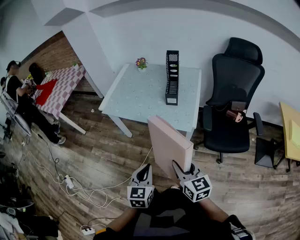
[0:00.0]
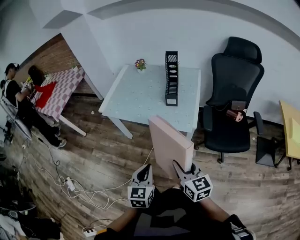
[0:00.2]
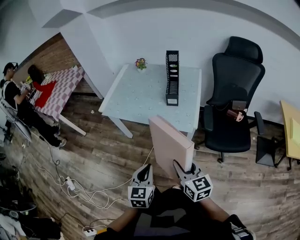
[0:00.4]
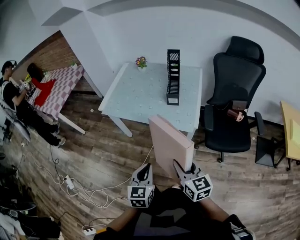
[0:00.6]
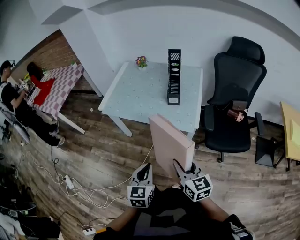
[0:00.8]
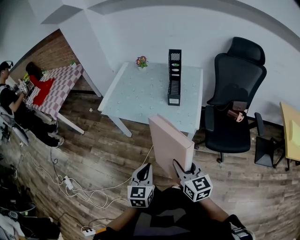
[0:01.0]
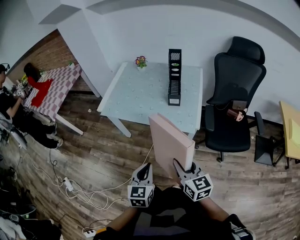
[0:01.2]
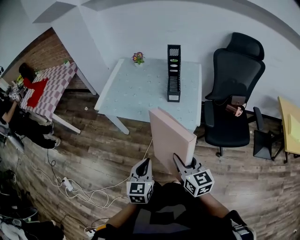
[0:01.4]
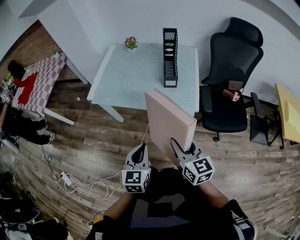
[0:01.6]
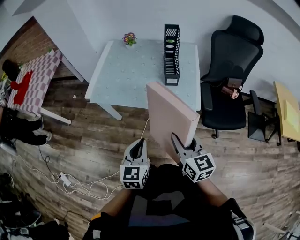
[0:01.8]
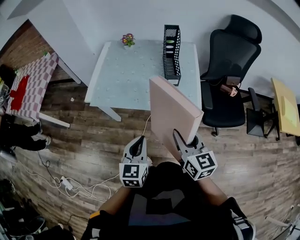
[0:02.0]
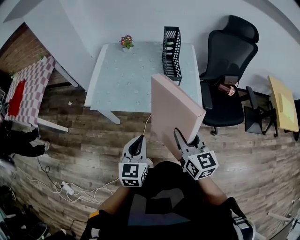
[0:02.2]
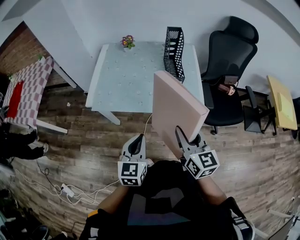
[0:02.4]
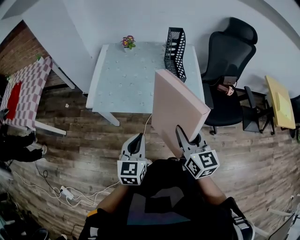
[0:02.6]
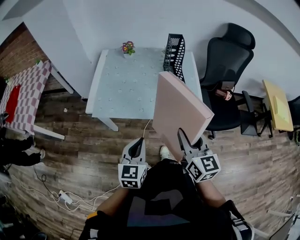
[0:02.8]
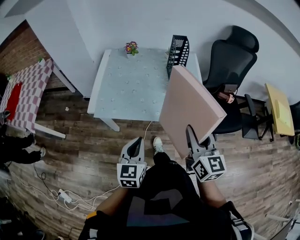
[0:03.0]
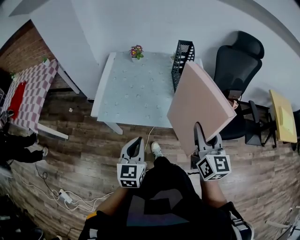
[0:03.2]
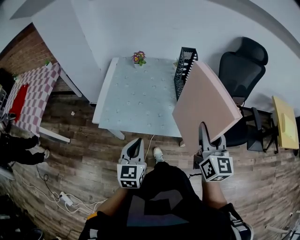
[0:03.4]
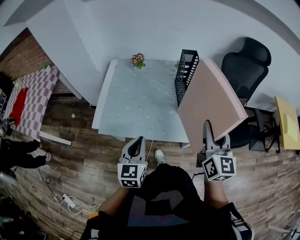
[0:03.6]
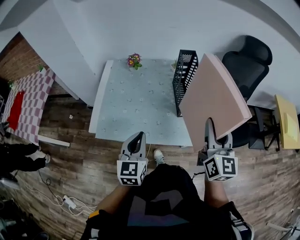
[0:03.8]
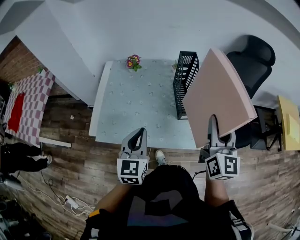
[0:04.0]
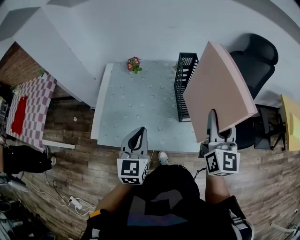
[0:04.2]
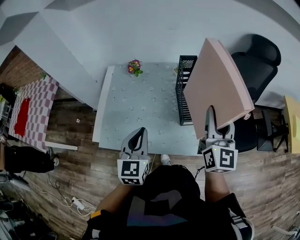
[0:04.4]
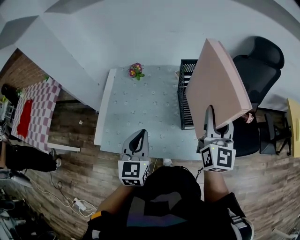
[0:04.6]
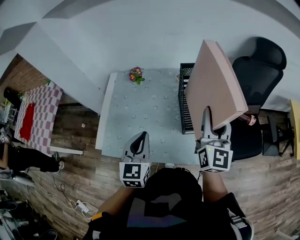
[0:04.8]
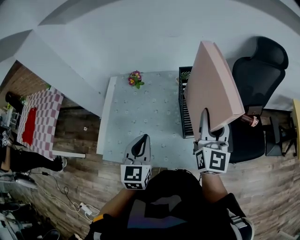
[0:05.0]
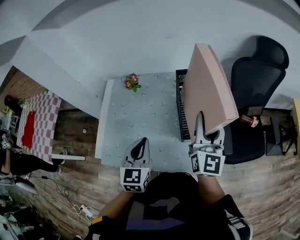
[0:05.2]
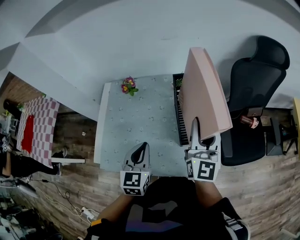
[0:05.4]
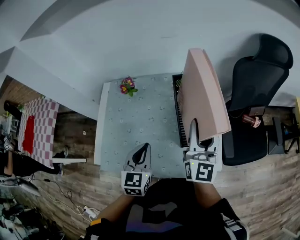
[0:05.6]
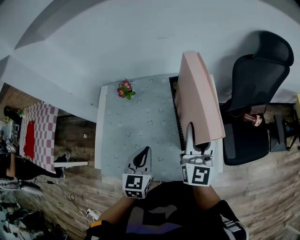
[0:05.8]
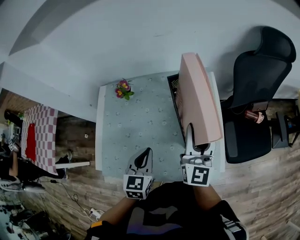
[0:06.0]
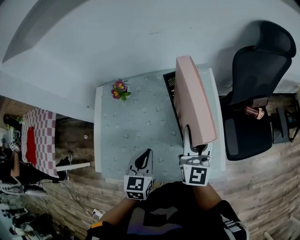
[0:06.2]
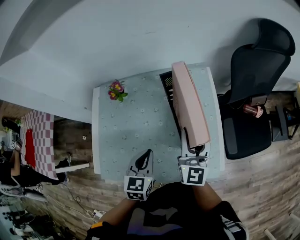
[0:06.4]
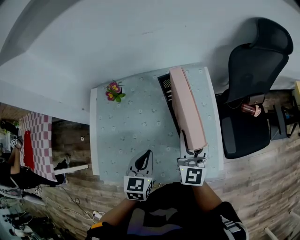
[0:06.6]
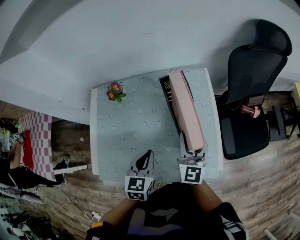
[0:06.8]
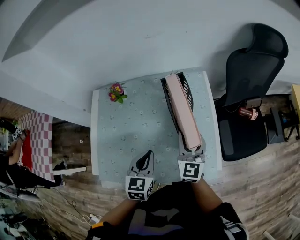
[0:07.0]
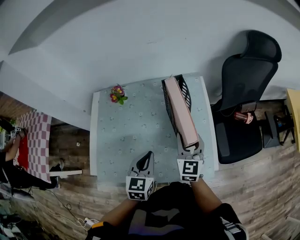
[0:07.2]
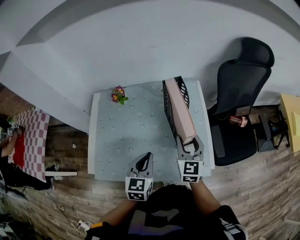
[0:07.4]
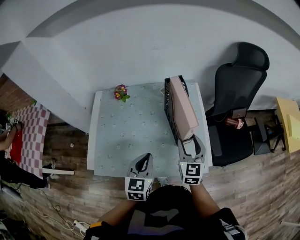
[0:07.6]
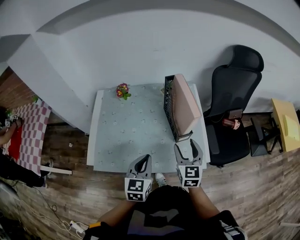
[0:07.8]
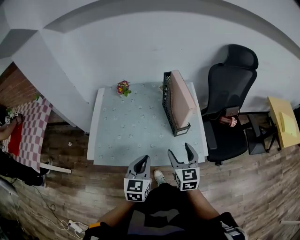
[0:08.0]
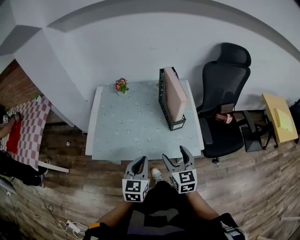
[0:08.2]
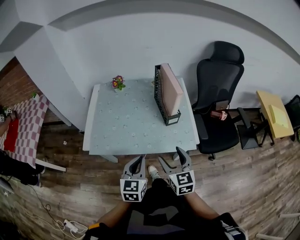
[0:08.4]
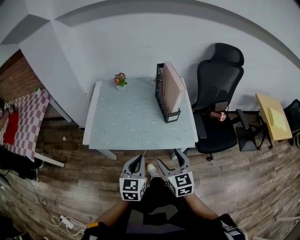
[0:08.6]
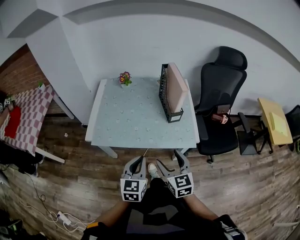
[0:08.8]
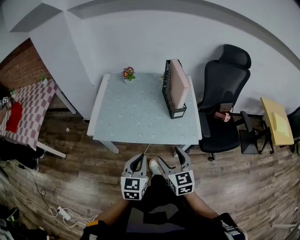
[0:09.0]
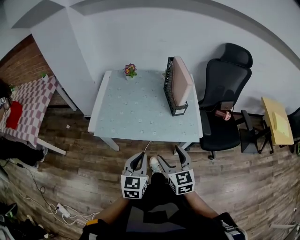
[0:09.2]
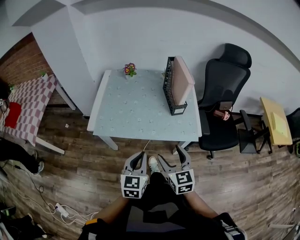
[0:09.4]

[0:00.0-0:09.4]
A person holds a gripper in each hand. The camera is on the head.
0.0 to 1.6 s: The grippers both shift forward by approximately 10 cm.
1.6 to 3.2 s: The right gripper is displaced forward and upward by roughly 15 cm, and turns by roughly 30 degrees. Meanwhile the left gripper heads to the left and forward, covering some 20 cm.
3.2 to 4.8 s: Both grippers travel together forward, about 25 cm.
4.8 to 6.2 s: Both grippers travel together downward and forward, some 15 cm.
6.2 to 7.8 s: Both grippers travel together backward, some 15 cm. The right gripper turns by about 30 degrees, and opens.
7.8 to 9.4 s: Both grippers move backward, some 25 cm.

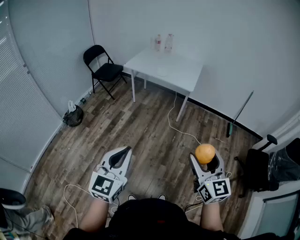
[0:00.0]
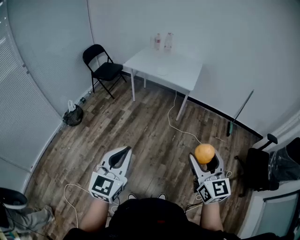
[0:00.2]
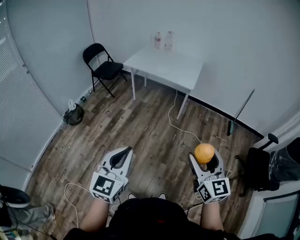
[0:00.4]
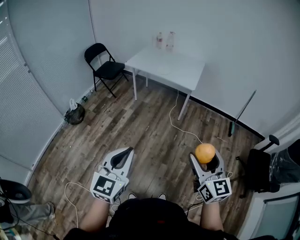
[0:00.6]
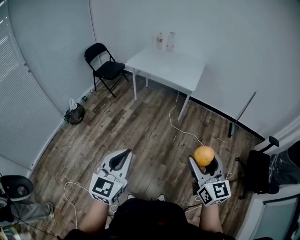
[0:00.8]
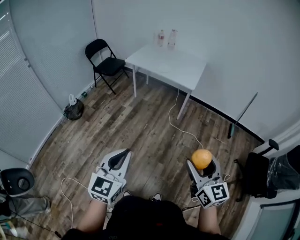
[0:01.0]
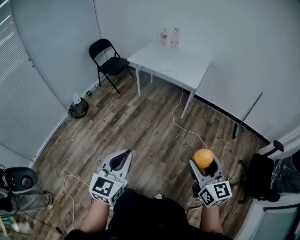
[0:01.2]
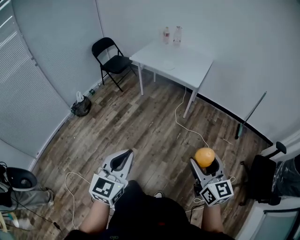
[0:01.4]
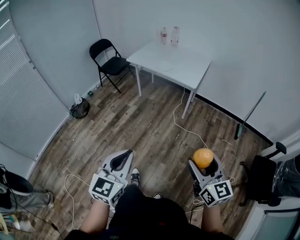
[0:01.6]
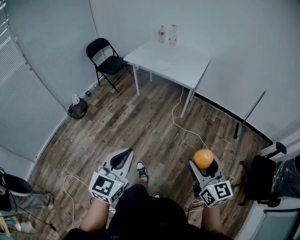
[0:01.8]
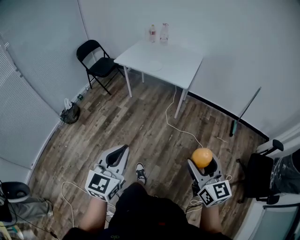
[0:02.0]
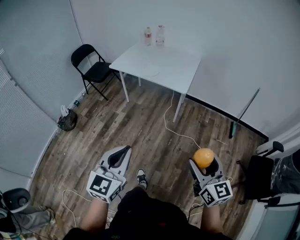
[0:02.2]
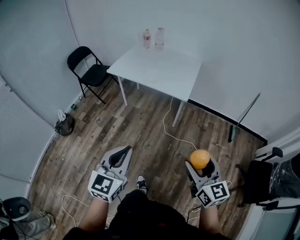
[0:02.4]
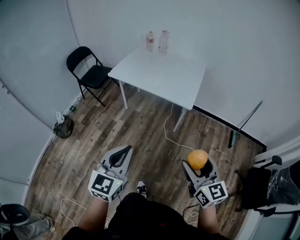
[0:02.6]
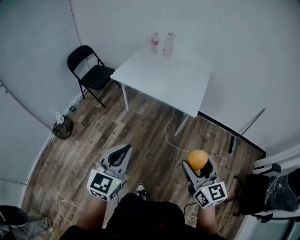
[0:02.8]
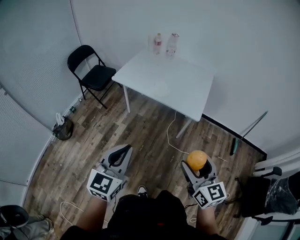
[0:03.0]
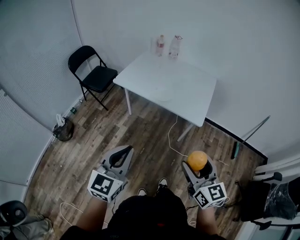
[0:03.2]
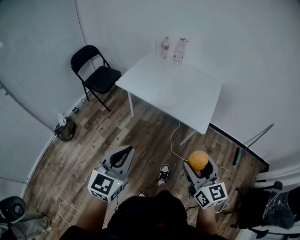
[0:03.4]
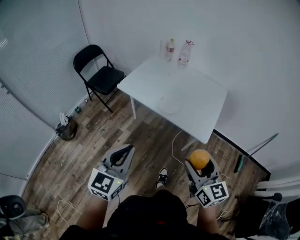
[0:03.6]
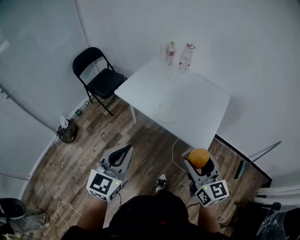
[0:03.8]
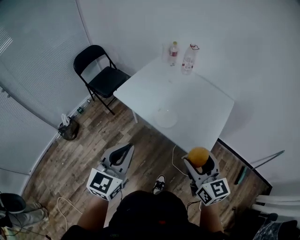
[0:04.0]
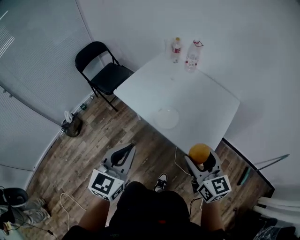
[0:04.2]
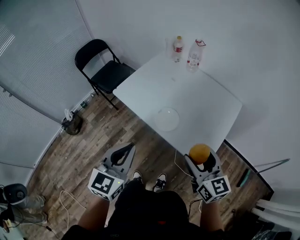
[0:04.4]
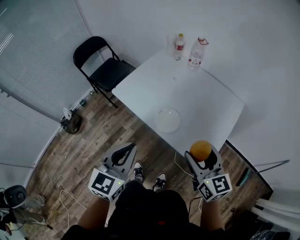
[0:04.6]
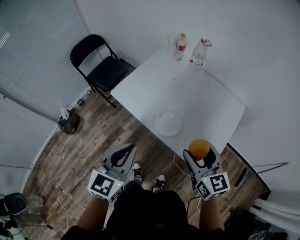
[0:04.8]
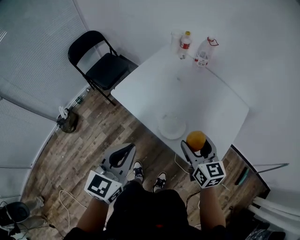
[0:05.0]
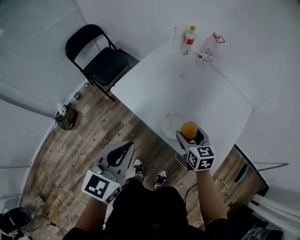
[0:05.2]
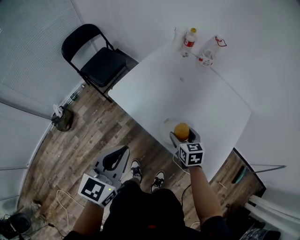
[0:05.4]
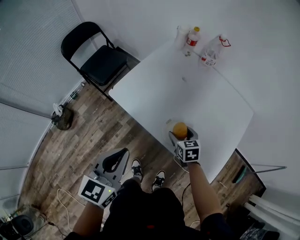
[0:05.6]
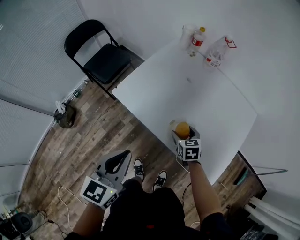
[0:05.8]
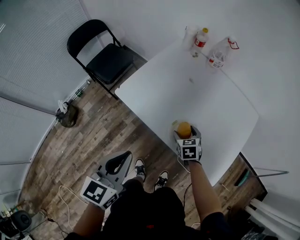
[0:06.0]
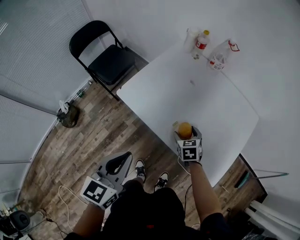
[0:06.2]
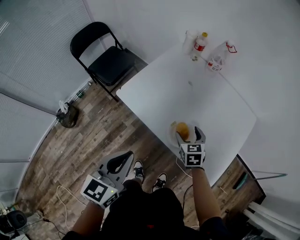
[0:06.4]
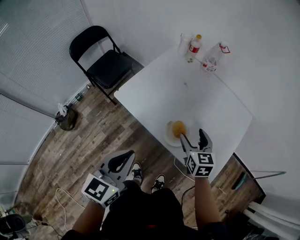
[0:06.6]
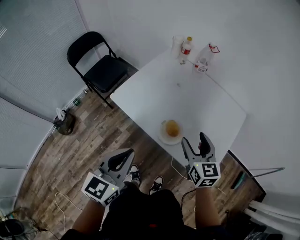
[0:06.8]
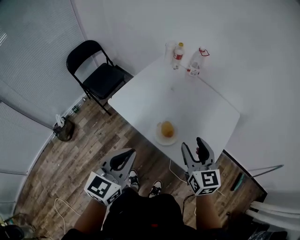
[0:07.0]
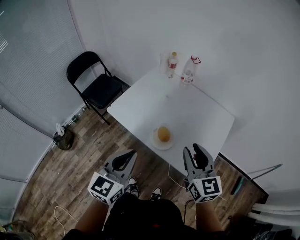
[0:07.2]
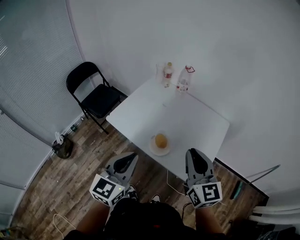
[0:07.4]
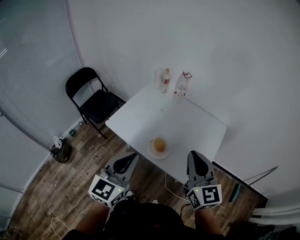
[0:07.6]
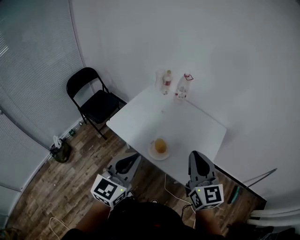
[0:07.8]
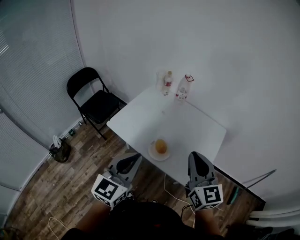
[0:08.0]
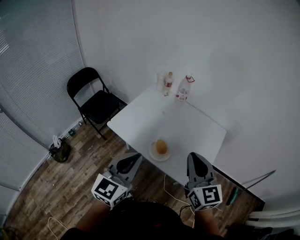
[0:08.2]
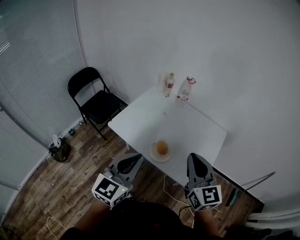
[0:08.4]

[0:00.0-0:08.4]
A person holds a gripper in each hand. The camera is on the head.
0.0 to 1.4 s: The right gripper travels to the right and downward by some 10 cm; the left gripper travels to the right by approximately 10 cm.
1.4 to 2.8 s: Both grippers travel together forward, some 40 cm.
2.8 to 4.2 s: Both grippers travel together forward, roughly 40 cm.
4.2 to 5.6 s: The right gripper travels downward and forward by some 40 cm, and tips its fingers downward by some 40 degrees; the left gripper moves forward, to the left and downward, roughly 20 cm.
5.6 to 7.0 s: The left gripper heads to the right, upward and backward, covering roughly 10 cm. Meanwhile the right gripper is displaced upward and backward by about 30 cm, and tips its fingers upward by approximately 30 degrees.
7.0 to 8.4 s: The left gripper shifts about 10 cm upward; the right gripper moves upward and backward, roughly 15 cm, and closes up.

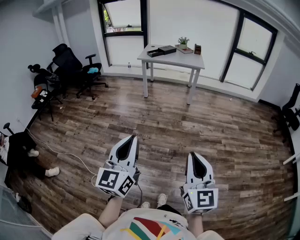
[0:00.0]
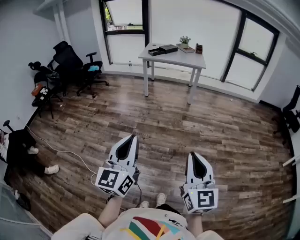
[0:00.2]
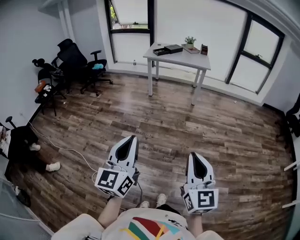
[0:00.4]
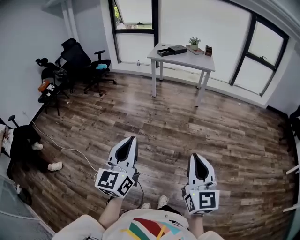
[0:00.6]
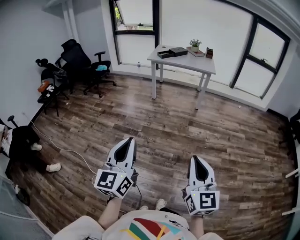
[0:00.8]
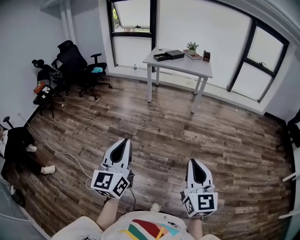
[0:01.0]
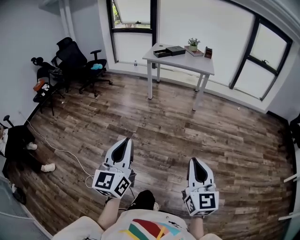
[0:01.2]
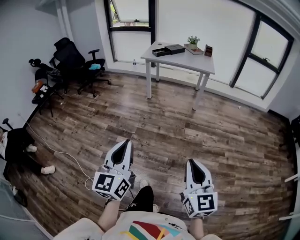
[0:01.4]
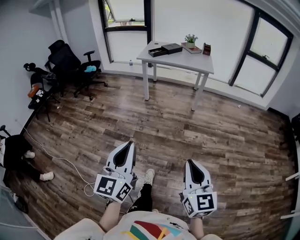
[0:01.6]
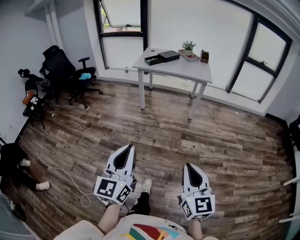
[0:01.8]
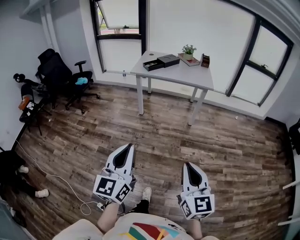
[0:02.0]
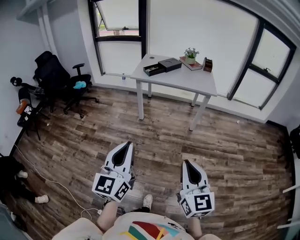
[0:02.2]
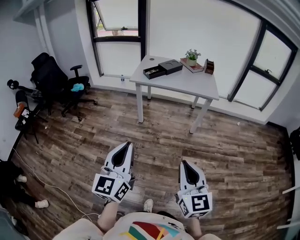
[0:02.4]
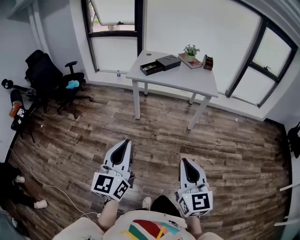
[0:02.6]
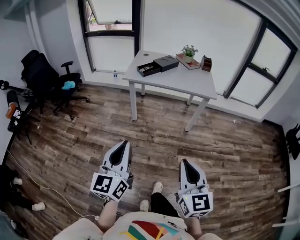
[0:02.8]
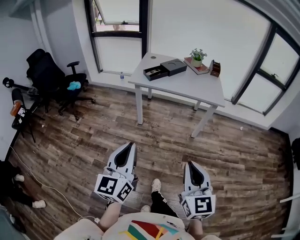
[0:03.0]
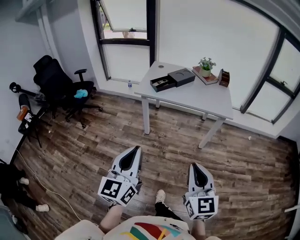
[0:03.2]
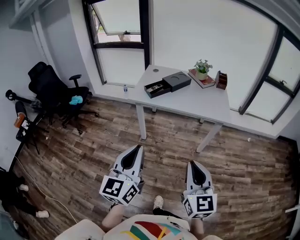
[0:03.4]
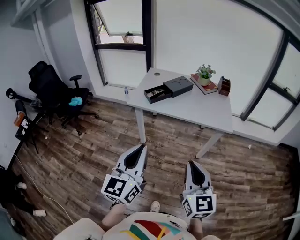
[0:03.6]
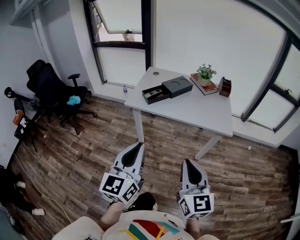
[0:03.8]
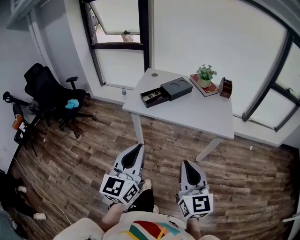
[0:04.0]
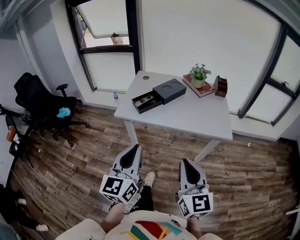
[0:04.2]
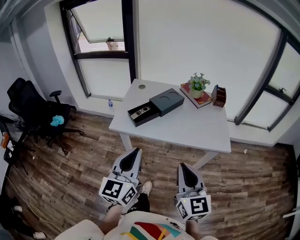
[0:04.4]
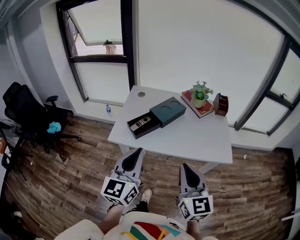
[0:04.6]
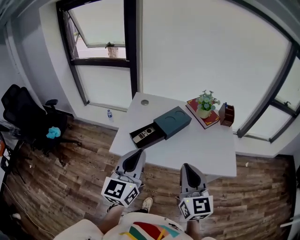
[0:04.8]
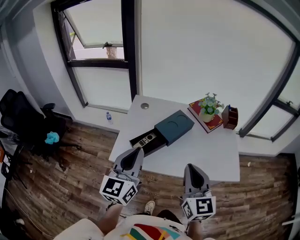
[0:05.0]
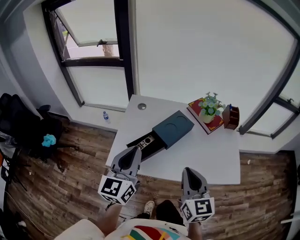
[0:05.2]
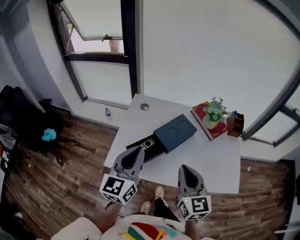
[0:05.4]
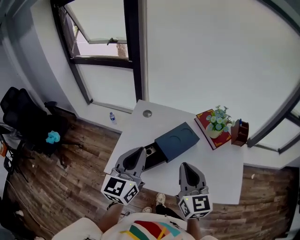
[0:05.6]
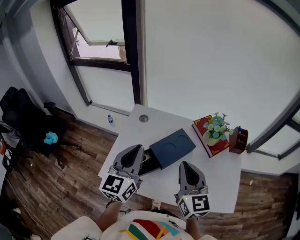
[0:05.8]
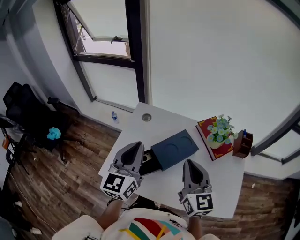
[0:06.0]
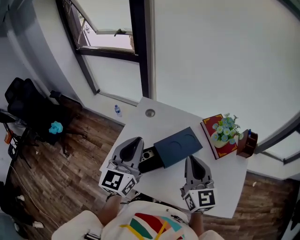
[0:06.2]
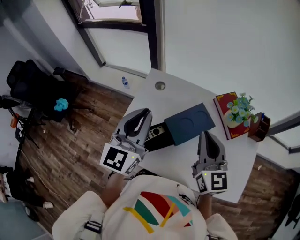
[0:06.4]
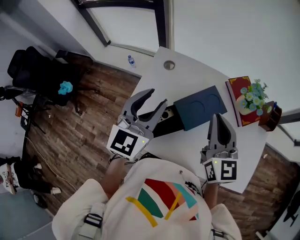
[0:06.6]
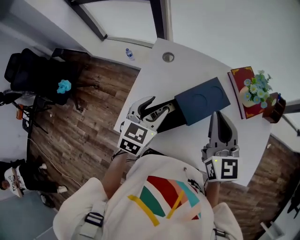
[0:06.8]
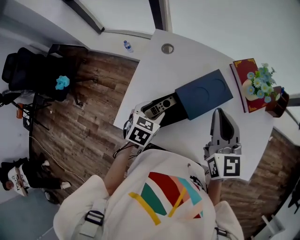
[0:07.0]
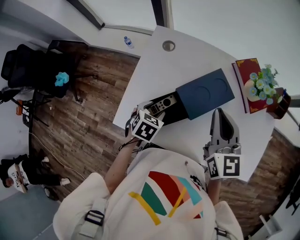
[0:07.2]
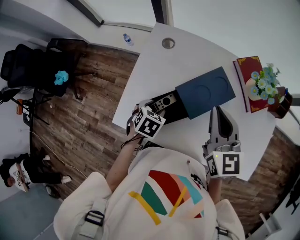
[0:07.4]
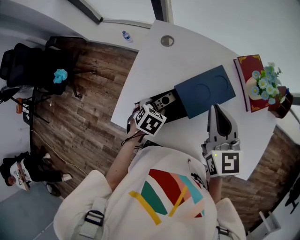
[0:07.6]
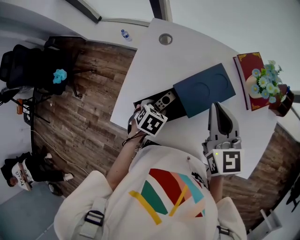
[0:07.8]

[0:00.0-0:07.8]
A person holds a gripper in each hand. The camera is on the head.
0.0 to 1.6 s: Both grippers travel together forward, approximately 20 cm.
1.6 to 3.2 s: The two grippers travel together, forward, roughly 50 cm.
3.2 to 4.6 s: The two grippers travel together, forward, about 40 cm.
4.6 to 6.2 s: The two grippers go roughly 35 cm forward.
6.2 to 7.8 s: The left gripper moves downward, some 35 cm, tips its fingers downward by some 70 degrees, and opens its fingers. Meanwhile the right gripper is displaced downward and forward by about 10 cm.
